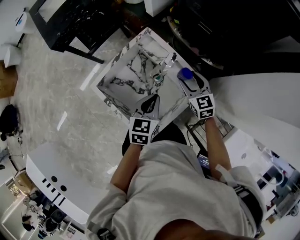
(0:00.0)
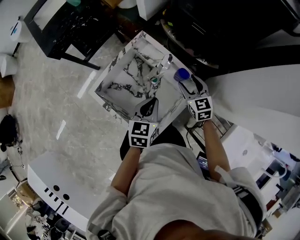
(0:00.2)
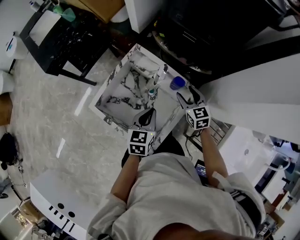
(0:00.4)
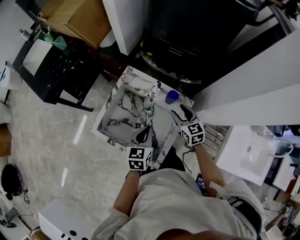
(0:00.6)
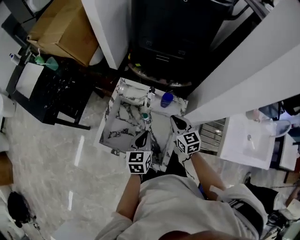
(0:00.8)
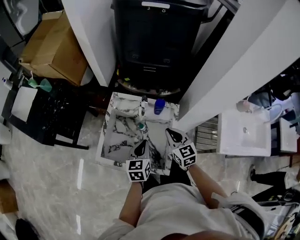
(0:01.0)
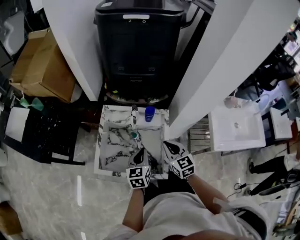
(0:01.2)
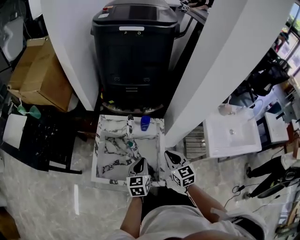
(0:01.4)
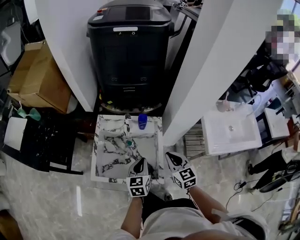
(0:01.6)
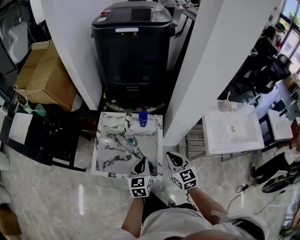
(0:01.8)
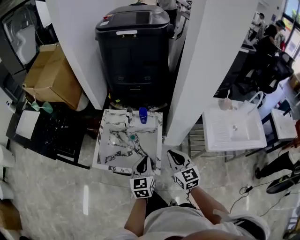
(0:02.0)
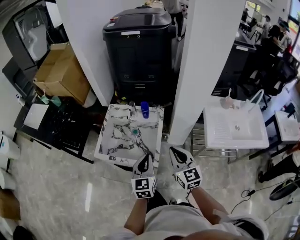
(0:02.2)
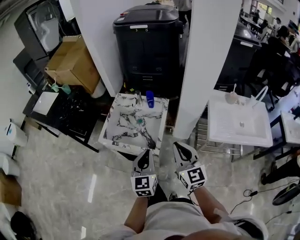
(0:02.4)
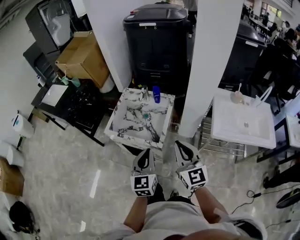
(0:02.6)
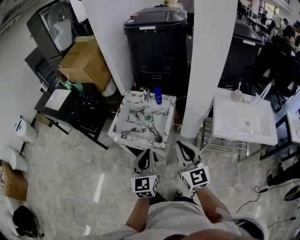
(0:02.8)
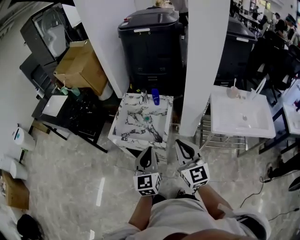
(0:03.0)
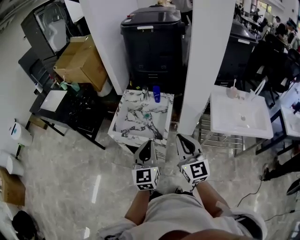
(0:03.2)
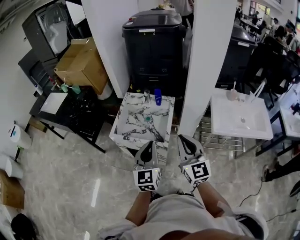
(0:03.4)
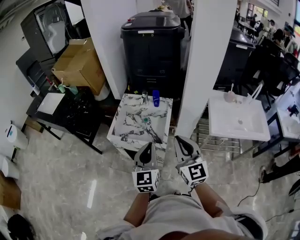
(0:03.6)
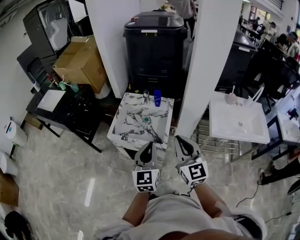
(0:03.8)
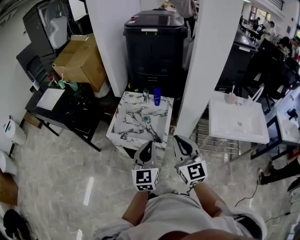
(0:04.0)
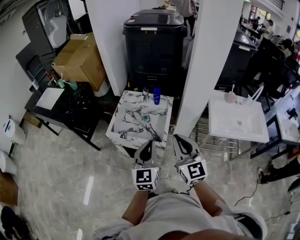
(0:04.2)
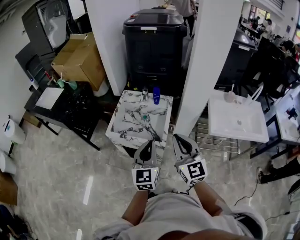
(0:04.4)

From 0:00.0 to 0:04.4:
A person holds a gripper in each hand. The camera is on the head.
From 0:00.0 to 0:01.4: The left gripper changes place by approximately 10 cm, and rotates approximately 30 degrees. The right gripper moves approximately 25 cm, swivels some 40 degrees, and closes.
From 0:01.4 to 0:03.0: Both grippers travel together backward and upward, approximately 35 cm. The right gripper changes its angle by approximately 30 degrees. The left gripper changes its angle by some 30 degrees.
From 0:03.0 to 0:04.4: The right gripper ends up approximately 5 cm from where it was.

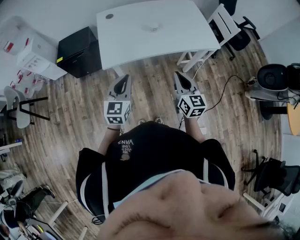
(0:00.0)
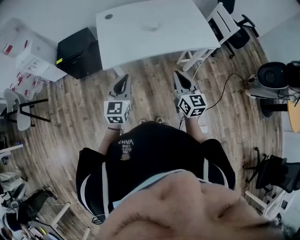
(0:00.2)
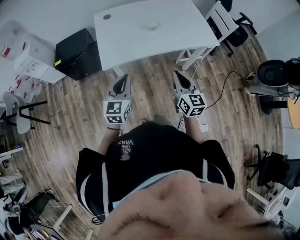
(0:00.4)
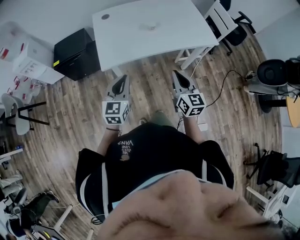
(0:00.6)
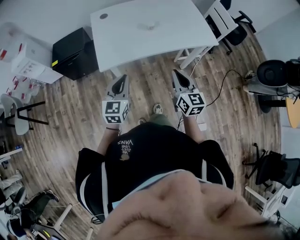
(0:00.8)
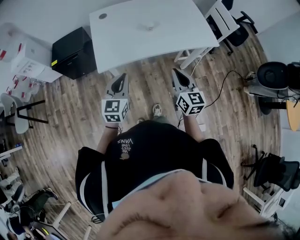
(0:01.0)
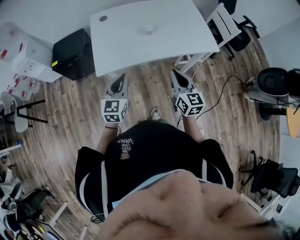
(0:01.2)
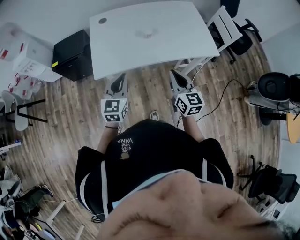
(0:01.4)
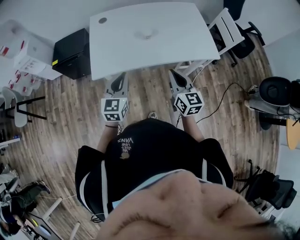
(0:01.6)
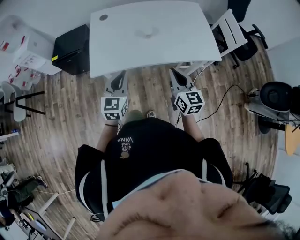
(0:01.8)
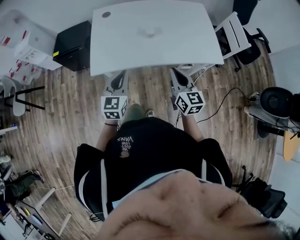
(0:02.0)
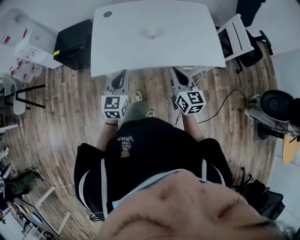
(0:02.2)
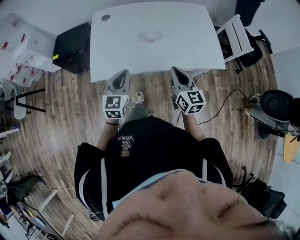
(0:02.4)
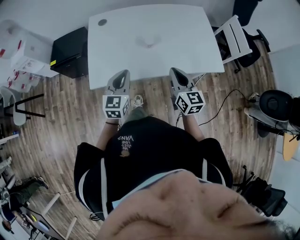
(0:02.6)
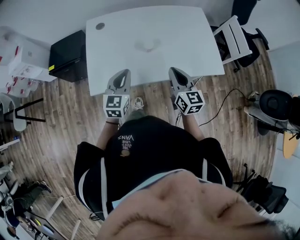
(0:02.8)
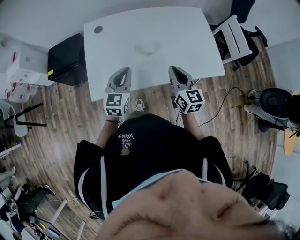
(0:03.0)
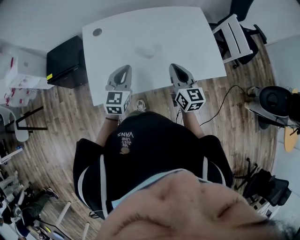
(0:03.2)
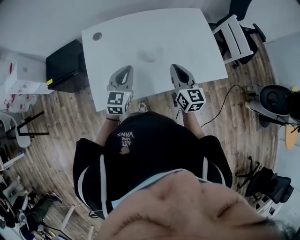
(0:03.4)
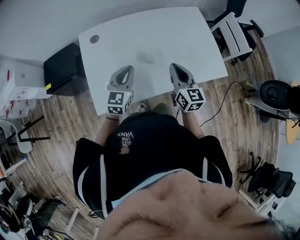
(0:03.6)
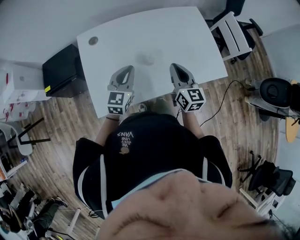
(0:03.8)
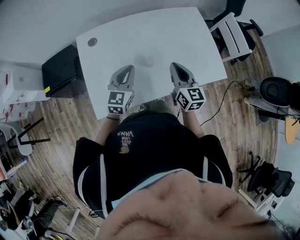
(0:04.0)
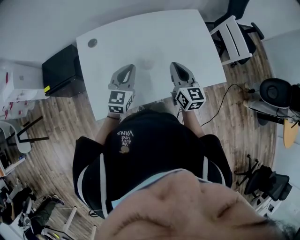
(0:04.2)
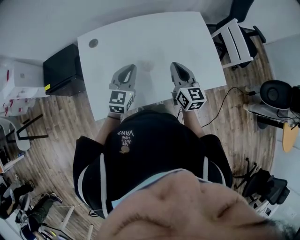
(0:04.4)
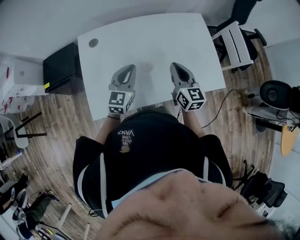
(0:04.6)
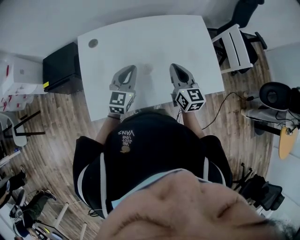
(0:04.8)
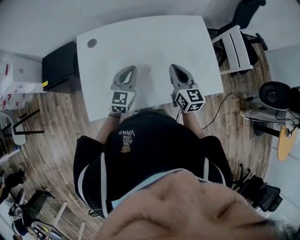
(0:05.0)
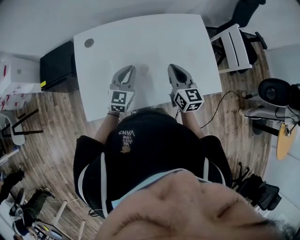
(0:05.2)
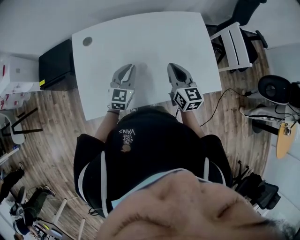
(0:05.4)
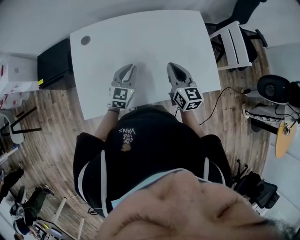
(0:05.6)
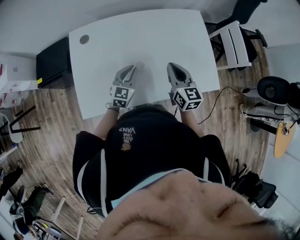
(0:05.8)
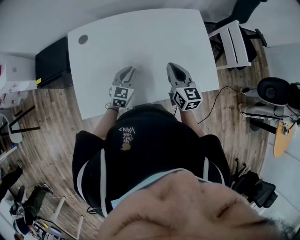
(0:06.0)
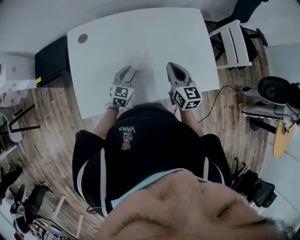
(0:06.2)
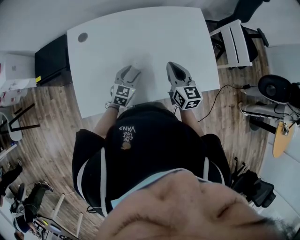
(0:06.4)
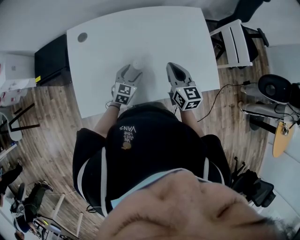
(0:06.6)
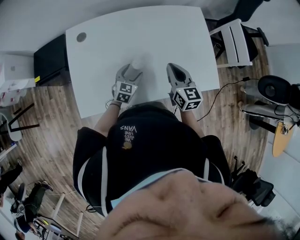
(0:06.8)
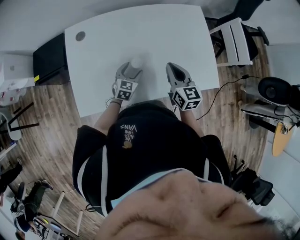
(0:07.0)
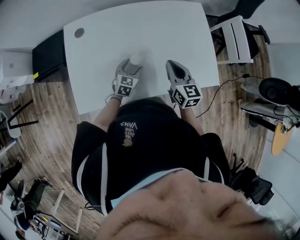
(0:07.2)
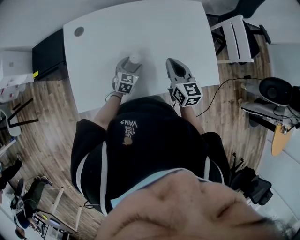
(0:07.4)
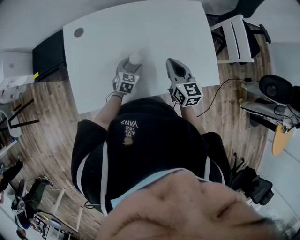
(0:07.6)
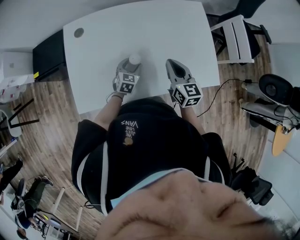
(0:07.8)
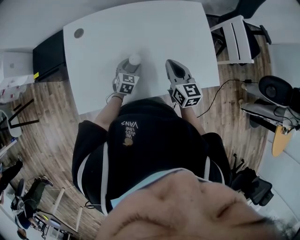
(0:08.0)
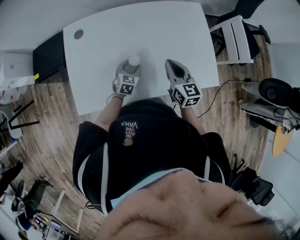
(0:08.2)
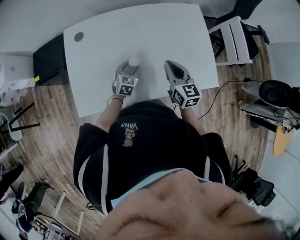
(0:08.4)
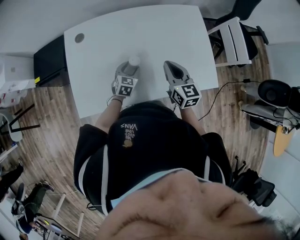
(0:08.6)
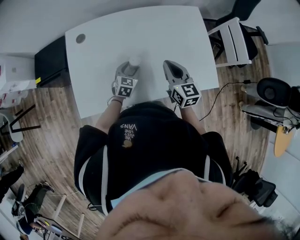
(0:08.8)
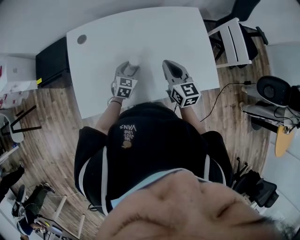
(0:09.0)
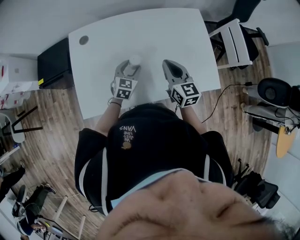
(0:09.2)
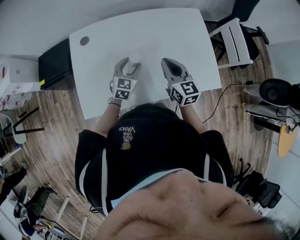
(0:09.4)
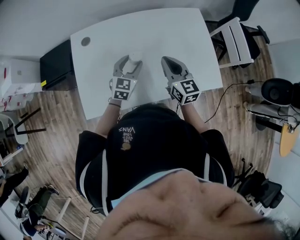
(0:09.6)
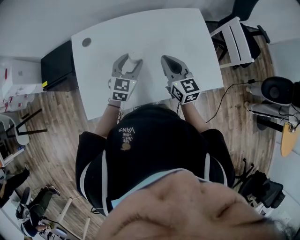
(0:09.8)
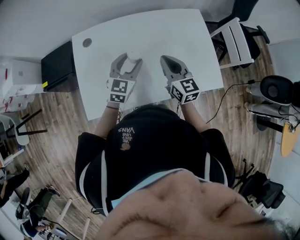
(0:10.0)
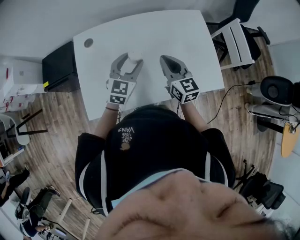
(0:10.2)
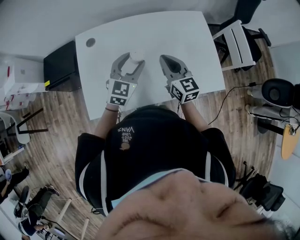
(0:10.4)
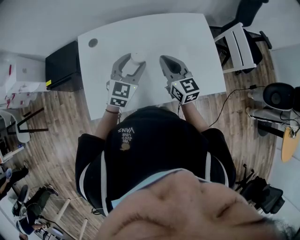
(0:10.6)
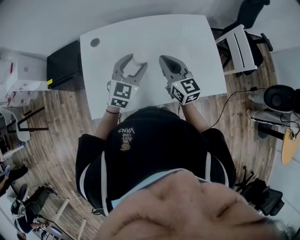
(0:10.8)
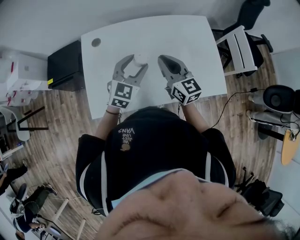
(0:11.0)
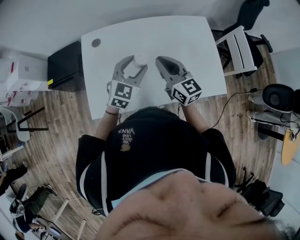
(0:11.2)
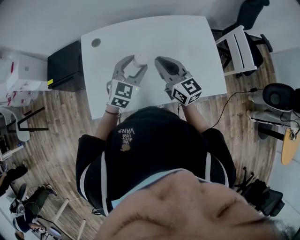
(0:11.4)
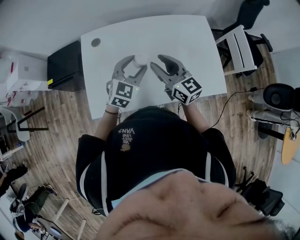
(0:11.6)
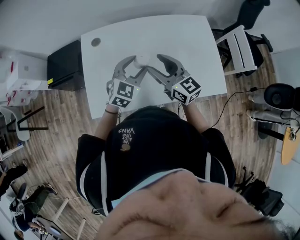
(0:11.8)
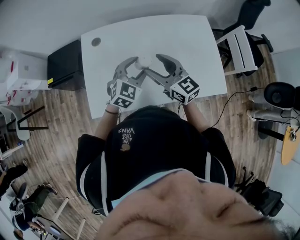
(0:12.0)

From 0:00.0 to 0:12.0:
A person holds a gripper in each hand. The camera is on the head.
From 0:00.0 to 0:01.6: The right gripper moves forward, roughly 10 cm, while the left gripper heads forward and to the right, covering some 15 cm.
From 0:01.6 to 0:03.0: The grippers both shift forward by about 15 cm.
From 0:03.0 to 0:04.4: The grippers both shift forward by some 10 cm.
From 0:04.4 to 0:06.0: The left gripper shifts roughly 15 cm downward and to the right. Meanwhile the right gripper shifts by roughly 5 cm.
From 0:06.0 to 0:07.6: The left gripper travels downward by about 10 cm, and opens its fingers.
From 0:07.6 to 0:09.0: The grippers move only a little.
From 0:09.0 to 0:10.4: The right gripper ends up about 5 cm from where it was. Meanwhile the left gripper travels upward by some 20 cm, and turns by approximately 20 degrees.
From 0:10.4 to 0:12.0: The right gripper travels to the left by roughly 5 cm, and opens its fingers.

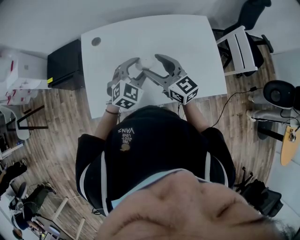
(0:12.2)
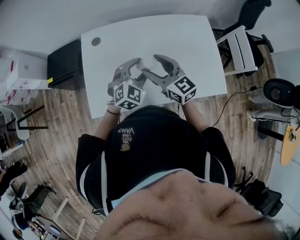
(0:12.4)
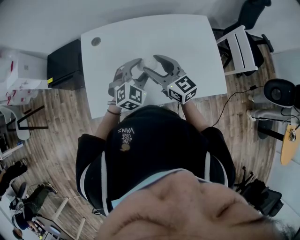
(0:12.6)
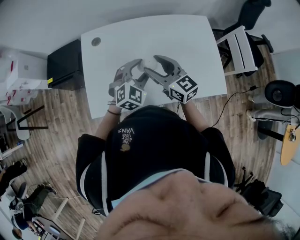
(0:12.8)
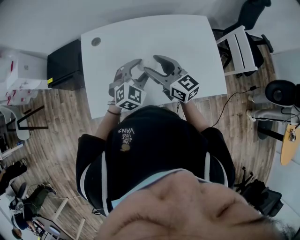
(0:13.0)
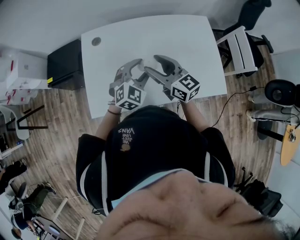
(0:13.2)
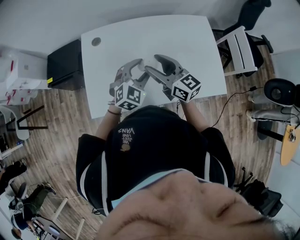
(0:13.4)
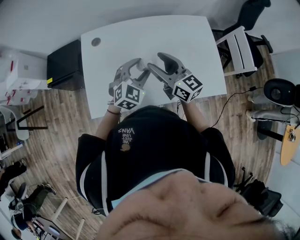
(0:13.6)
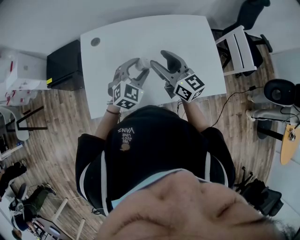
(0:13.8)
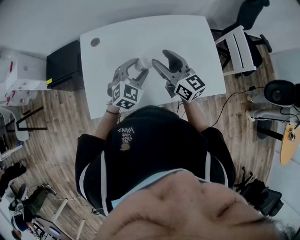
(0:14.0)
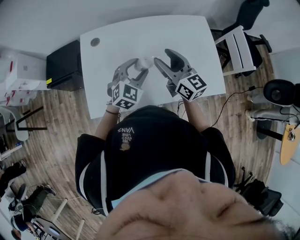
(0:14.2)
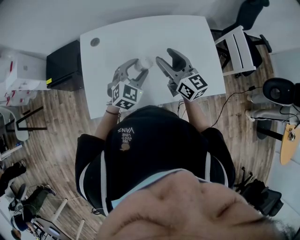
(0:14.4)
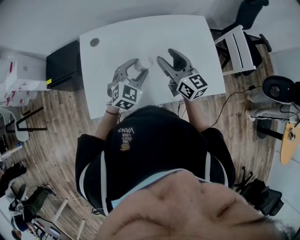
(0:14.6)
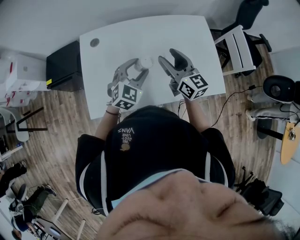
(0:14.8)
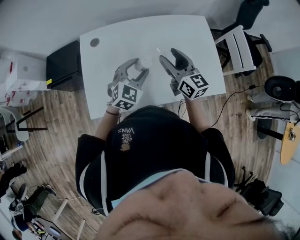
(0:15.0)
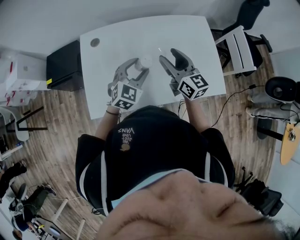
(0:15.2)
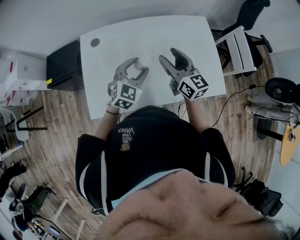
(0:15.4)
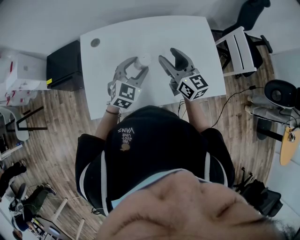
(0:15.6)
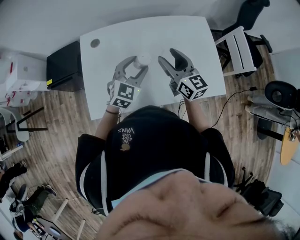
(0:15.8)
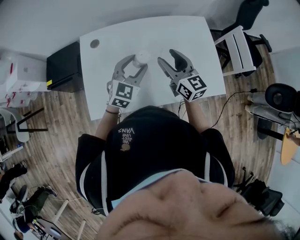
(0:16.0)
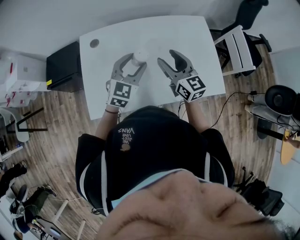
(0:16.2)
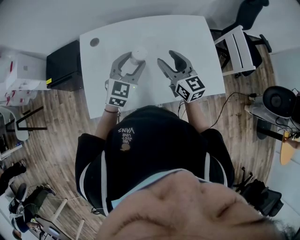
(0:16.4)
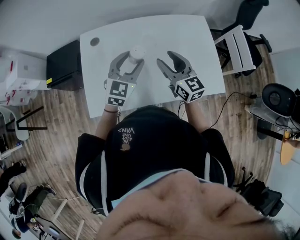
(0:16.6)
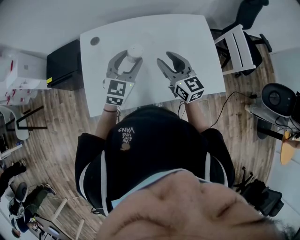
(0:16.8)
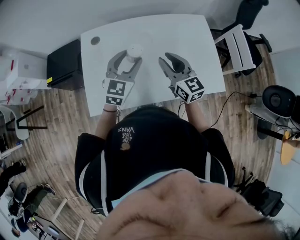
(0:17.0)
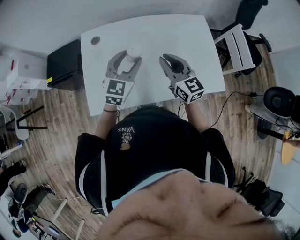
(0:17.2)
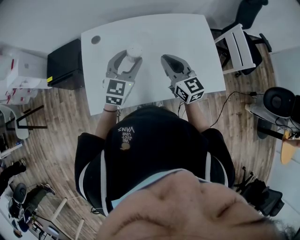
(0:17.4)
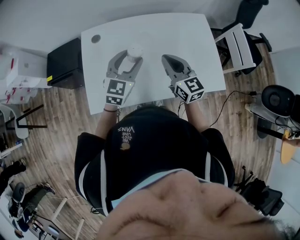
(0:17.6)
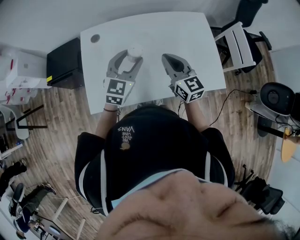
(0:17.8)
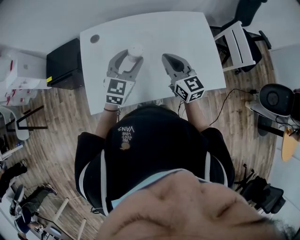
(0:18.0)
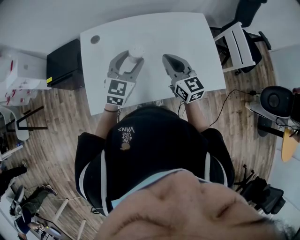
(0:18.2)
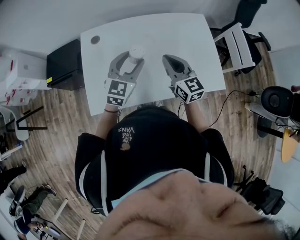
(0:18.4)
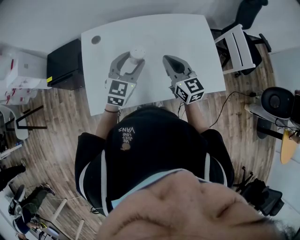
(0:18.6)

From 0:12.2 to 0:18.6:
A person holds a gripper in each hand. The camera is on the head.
From 0:12.2 to 0:13.8: The grippers stay close to where they were, moving slightly.
From 0:13.8 to 0:15.4: The grippers stay close to where they were, moving slightly.
From 0:15.4 to 0:17.0: The right gripper closes up; the left gripper is displaced upward by some 5 cm.
From 0:17.0 to 0:18.6: The right gripper closes its fingers.

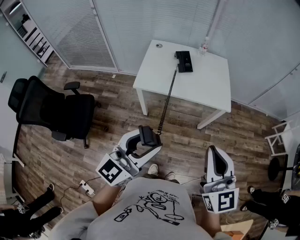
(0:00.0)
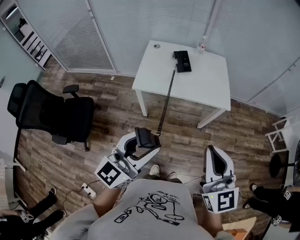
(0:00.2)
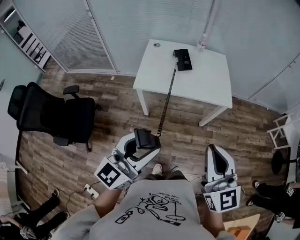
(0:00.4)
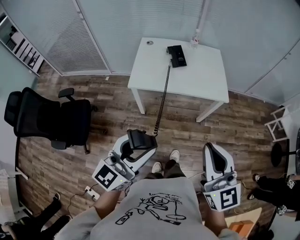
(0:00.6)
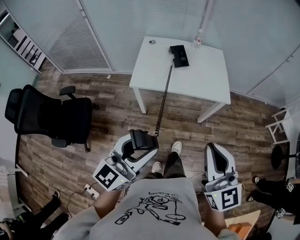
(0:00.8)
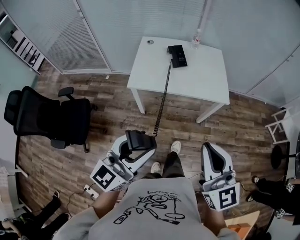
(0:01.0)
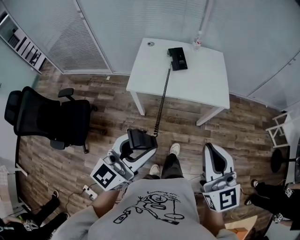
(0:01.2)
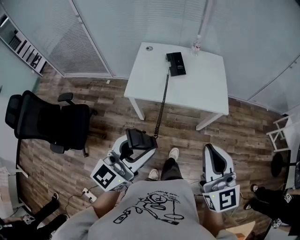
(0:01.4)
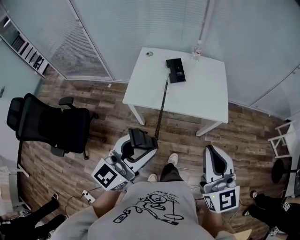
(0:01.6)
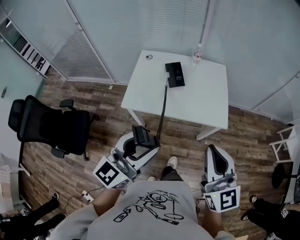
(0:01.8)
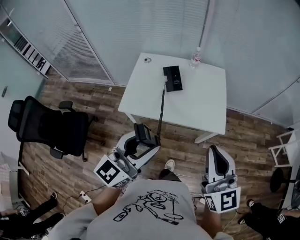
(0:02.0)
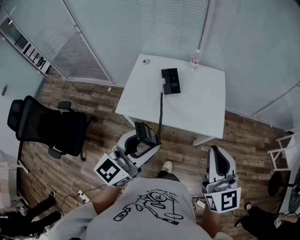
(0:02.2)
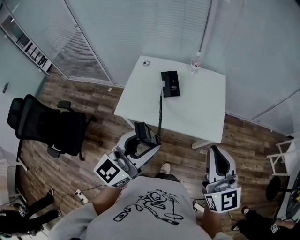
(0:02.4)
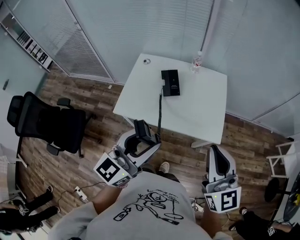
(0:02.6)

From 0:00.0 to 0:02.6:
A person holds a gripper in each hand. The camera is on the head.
From 0:00.0 to 0:01.2: The grippers move only a little.
From 0:01.2 to 0:02.6: Both grippers travel together forward and to the right, approximately 25 cm.
